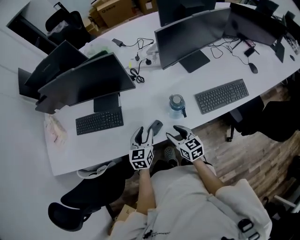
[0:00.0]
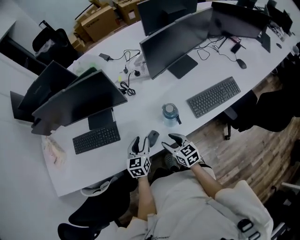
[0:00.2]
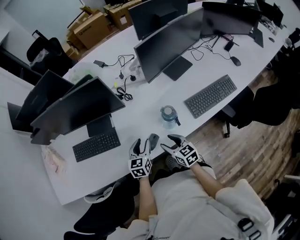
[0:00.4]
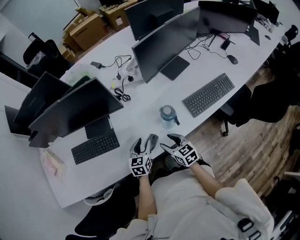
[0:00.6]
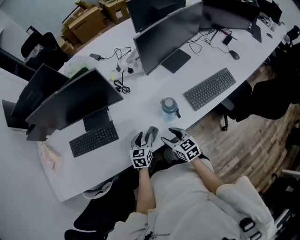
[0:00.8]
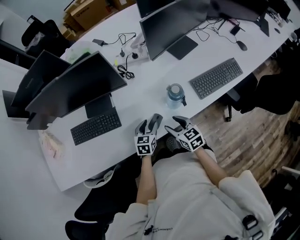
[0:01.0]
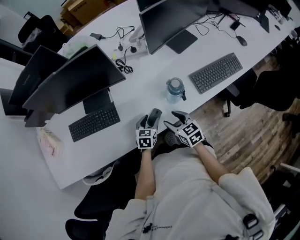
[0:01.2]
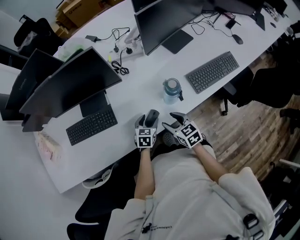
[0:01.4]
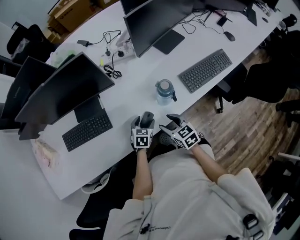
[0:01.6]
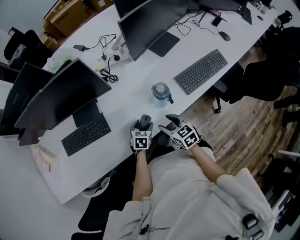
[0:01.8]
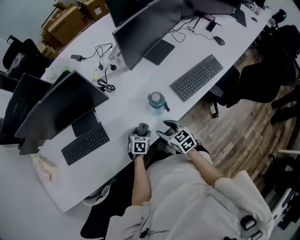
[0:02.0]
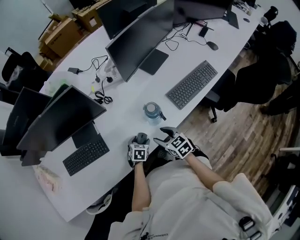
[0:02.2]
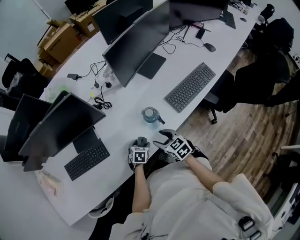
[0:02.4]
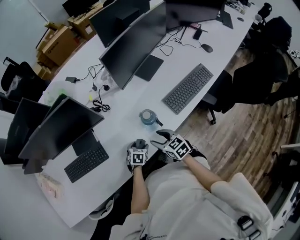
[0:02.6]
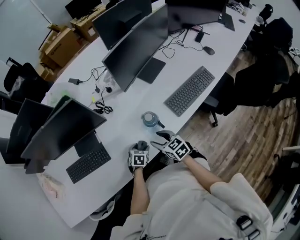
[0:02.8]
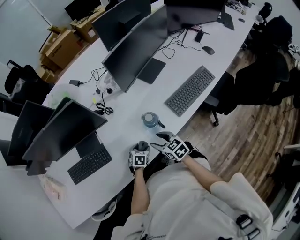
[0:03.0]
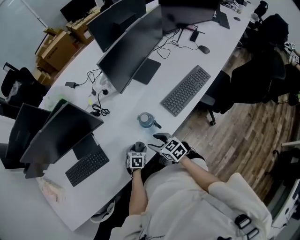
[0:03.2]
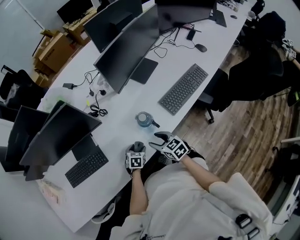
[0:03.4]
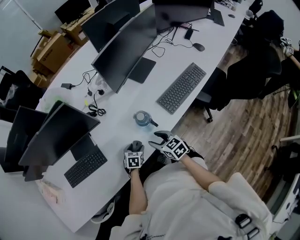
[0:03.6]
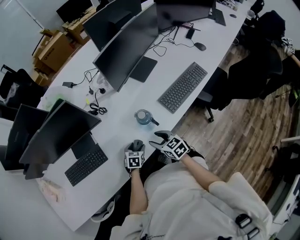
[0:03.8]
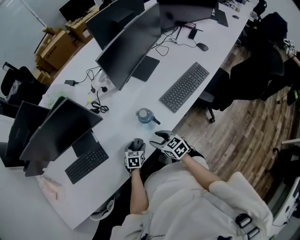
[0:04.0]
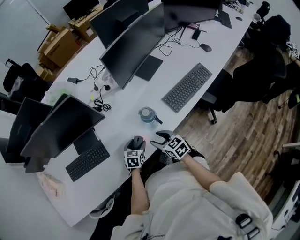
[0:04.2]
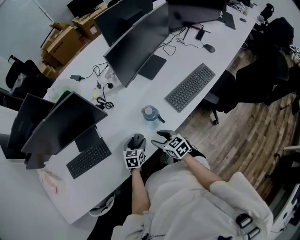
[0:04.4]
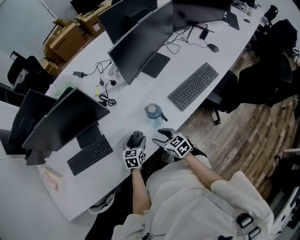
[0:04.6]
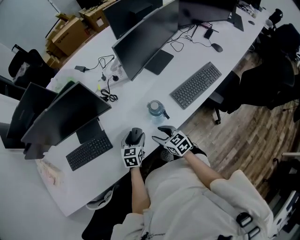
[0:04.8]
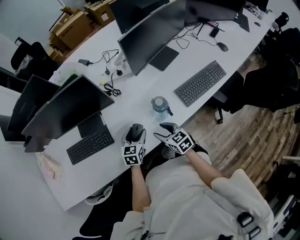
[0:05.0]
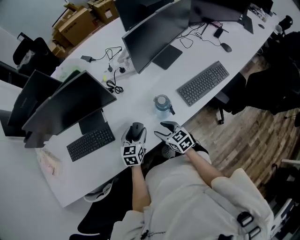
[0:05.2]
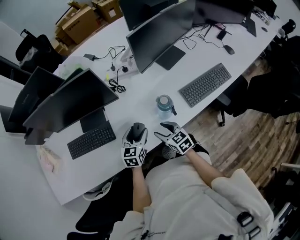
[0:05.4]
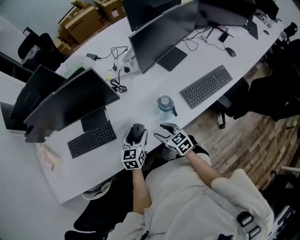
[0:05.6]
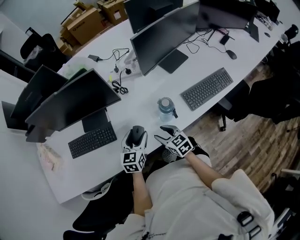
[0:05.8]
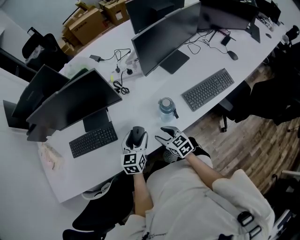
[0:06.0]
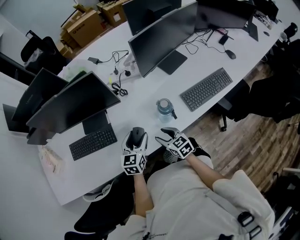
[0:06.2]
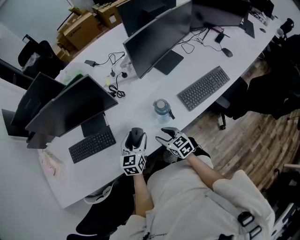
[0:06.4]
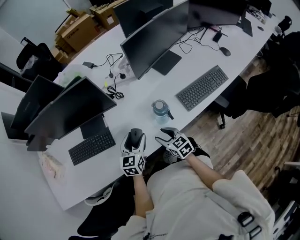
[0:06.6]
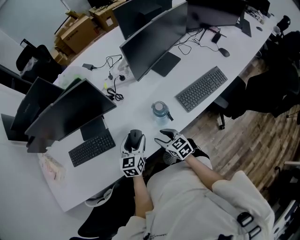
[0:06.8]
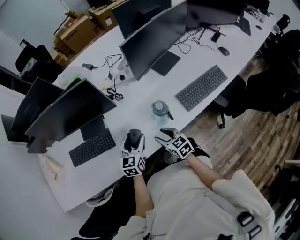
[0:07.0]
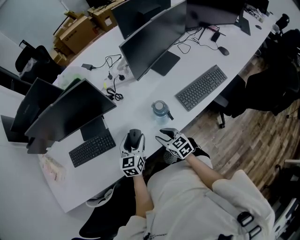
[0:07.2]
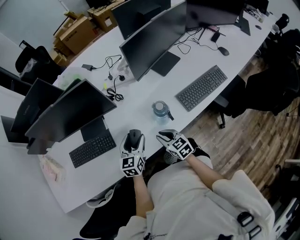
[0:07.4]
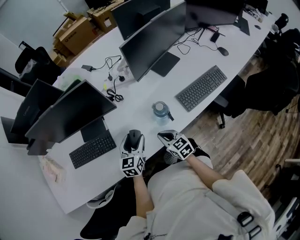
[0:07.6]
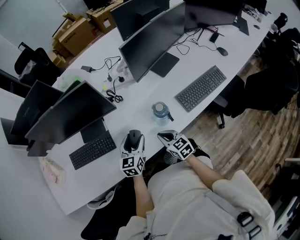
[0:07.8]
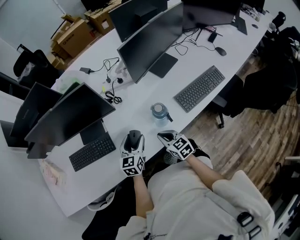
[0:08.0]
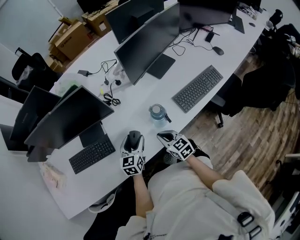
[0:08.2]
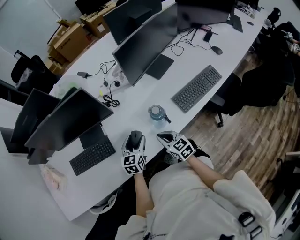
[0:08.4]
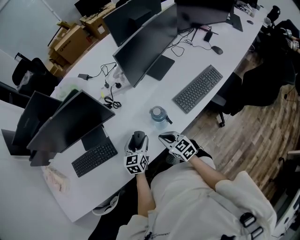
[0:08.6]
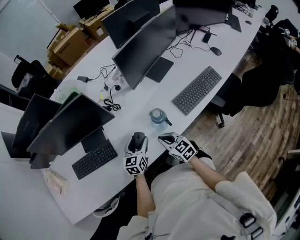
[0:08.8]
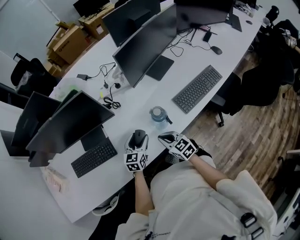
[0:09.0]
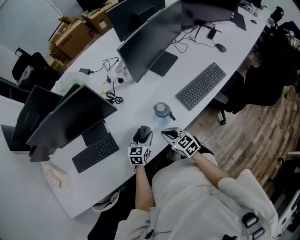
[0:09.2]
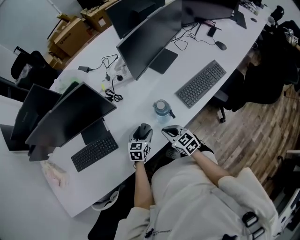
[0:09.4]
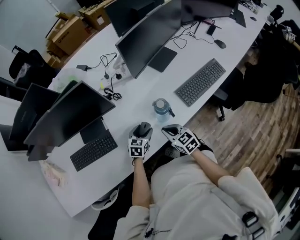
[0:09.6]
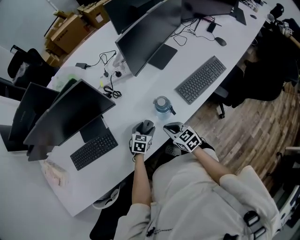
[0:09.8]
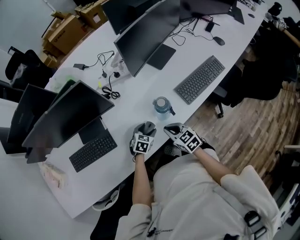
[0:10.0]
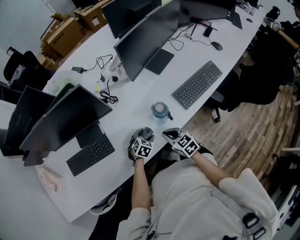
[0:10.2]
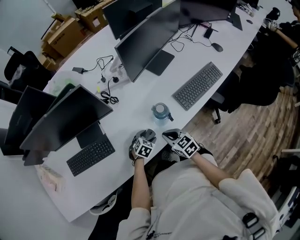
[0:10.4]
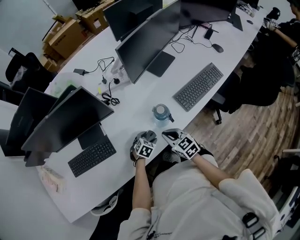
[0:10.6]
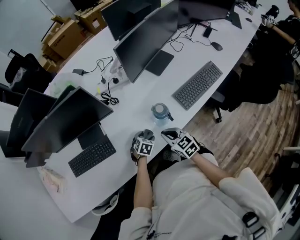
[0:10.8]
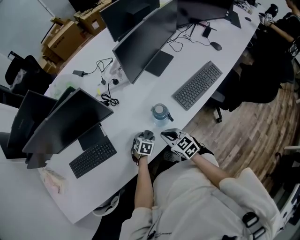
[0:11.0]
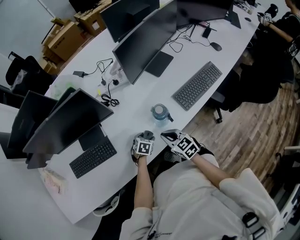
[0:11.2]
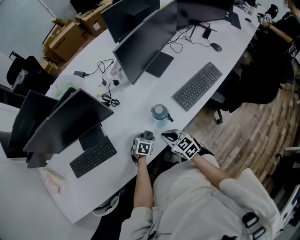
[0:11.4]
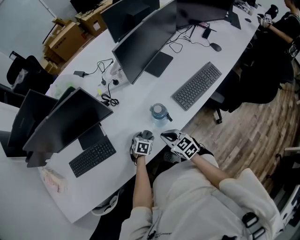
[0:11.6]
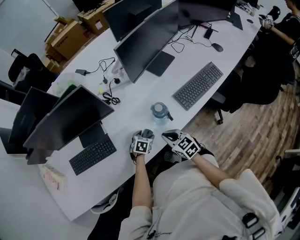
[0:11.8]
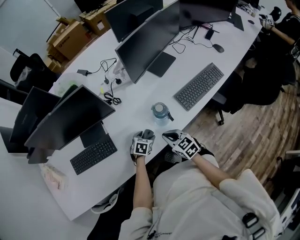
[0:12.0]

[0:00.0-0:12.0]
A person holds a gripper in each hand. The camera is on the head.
0:00.0 to 0:01.6: The left gripper is displaced downward by some 15 cm, changes its angle by about 30 degrees, and opens.
0:01.6 to 0:03.0: The grippers stay close to where they were, moving slightly.
0:03.0 to 0:04.4: The left gripper travels upward by about 10 cm.
0:04.4 to 0:06.0: The left gripper heads upward, covering some 15 cm, and swivels about 20 degrees.
0:06.0 to 0:07.6: The right gripper closes its fingers.
0:07.6 to 0:09.0: The left gripper travels downward by approximately 5 cm.
0:09.0 to 0:10.4: The left gripper is displaced downward by approximately 15 cm, and tips its fingers downward by roughly 30 degrees.
0:10.4 to 0:12.0: The grippers move only a little.

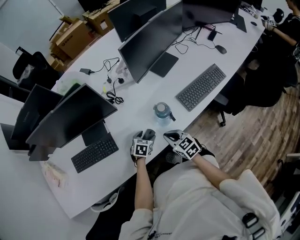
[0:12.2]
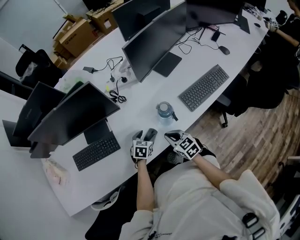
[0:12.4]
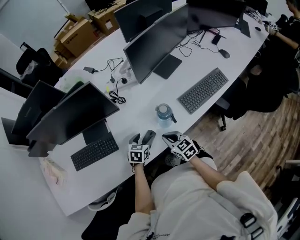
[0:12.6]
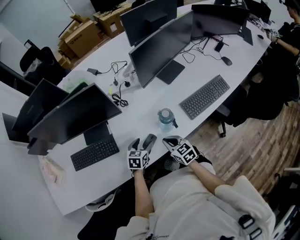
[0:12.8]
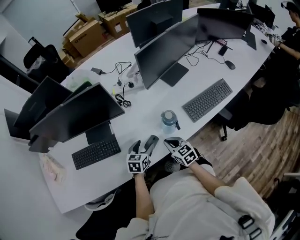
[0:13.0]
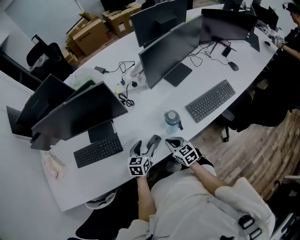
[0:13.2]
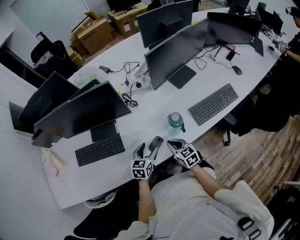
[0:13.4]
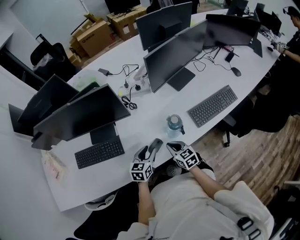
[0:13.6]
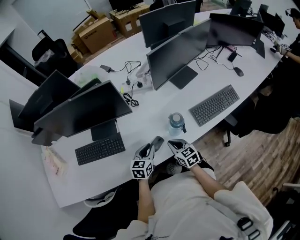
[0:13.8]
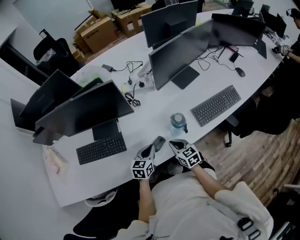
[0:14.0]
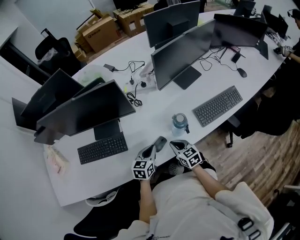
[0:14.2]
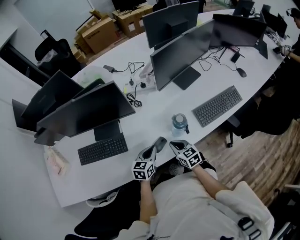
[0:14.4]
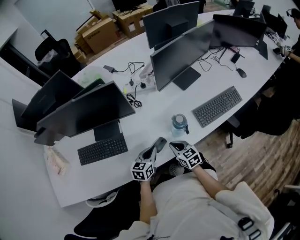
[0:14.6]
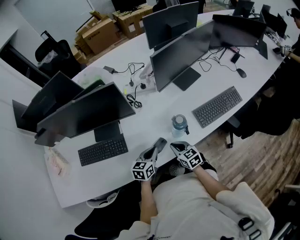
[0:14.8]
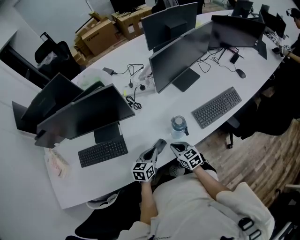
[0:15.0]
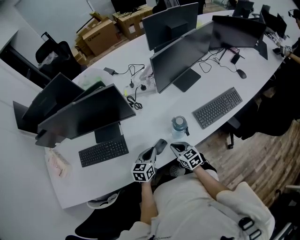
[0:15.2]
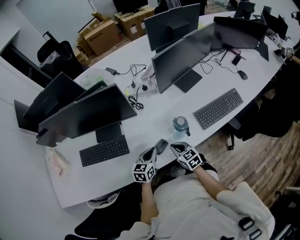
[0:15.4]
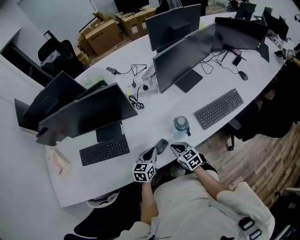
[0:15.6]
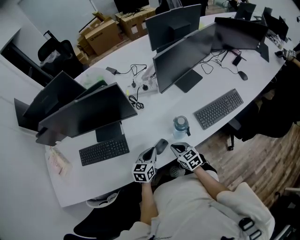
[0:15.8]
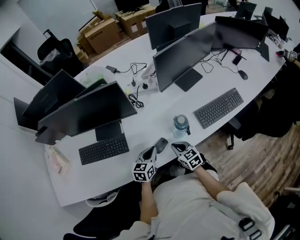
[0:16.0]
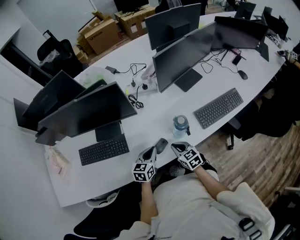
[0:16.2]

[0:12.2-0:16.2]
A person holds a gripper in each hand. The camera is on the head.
0:12.2 to 0:13.6: The left gripper moves upward, some 10 cm, rotates approximately 30 degrees, and closes.
0:13.6 to 0:14.8: The left gripper closes up.
0:14.8 to 0:16.2: The grippers make only small movements.

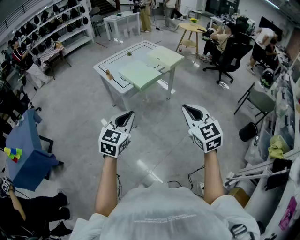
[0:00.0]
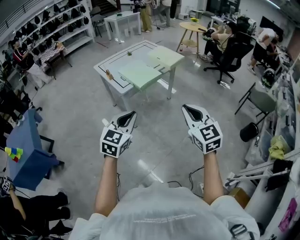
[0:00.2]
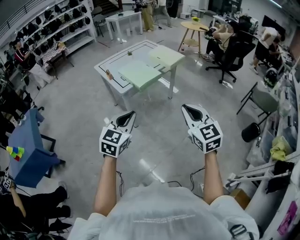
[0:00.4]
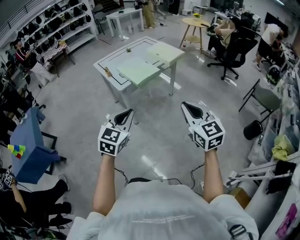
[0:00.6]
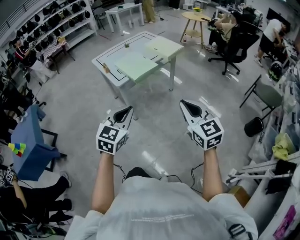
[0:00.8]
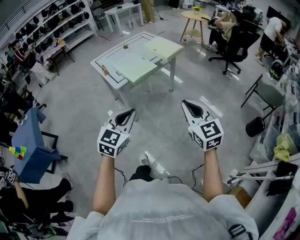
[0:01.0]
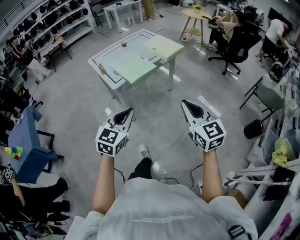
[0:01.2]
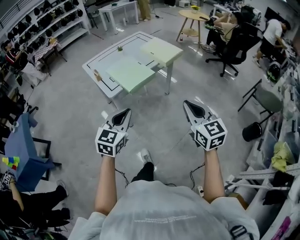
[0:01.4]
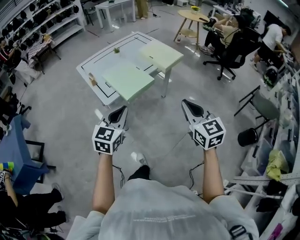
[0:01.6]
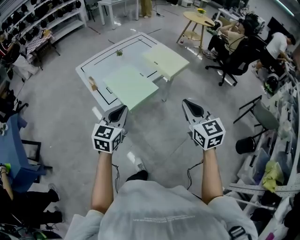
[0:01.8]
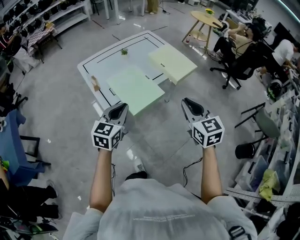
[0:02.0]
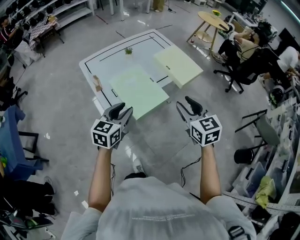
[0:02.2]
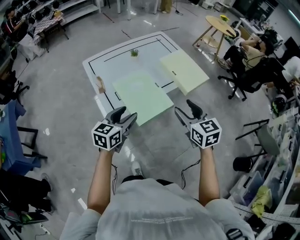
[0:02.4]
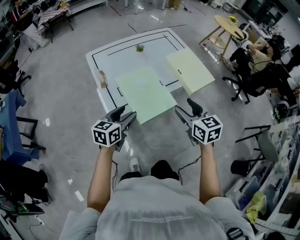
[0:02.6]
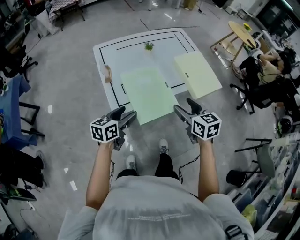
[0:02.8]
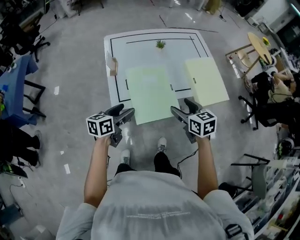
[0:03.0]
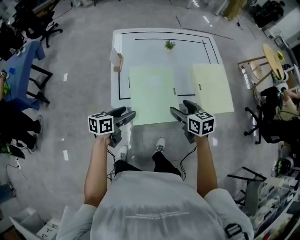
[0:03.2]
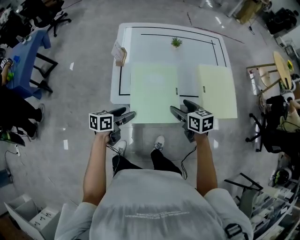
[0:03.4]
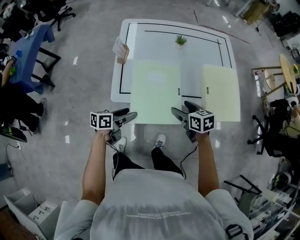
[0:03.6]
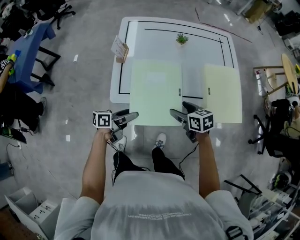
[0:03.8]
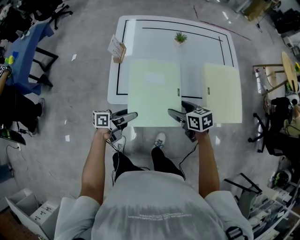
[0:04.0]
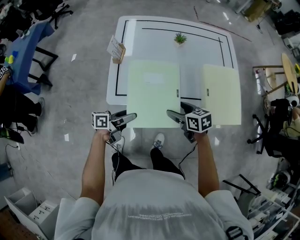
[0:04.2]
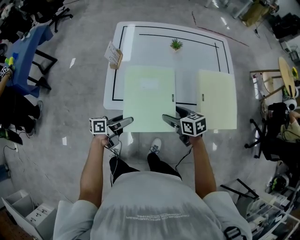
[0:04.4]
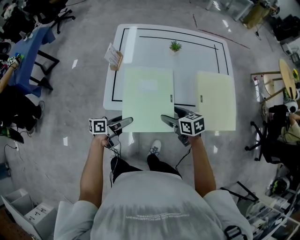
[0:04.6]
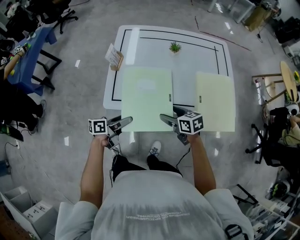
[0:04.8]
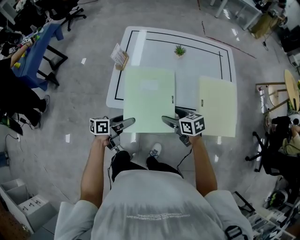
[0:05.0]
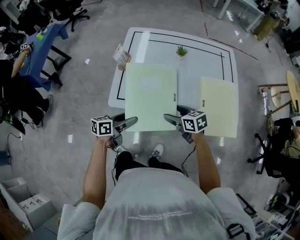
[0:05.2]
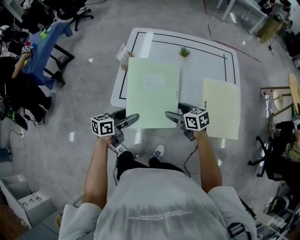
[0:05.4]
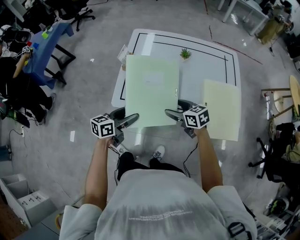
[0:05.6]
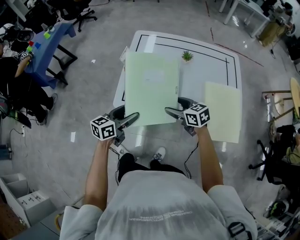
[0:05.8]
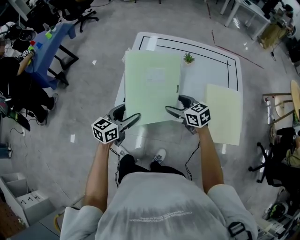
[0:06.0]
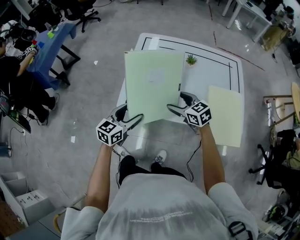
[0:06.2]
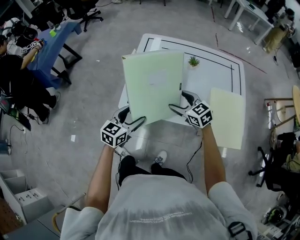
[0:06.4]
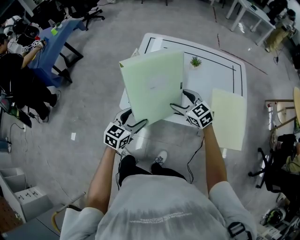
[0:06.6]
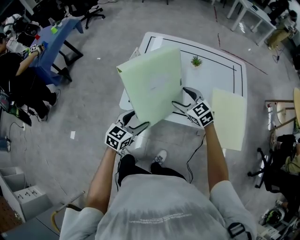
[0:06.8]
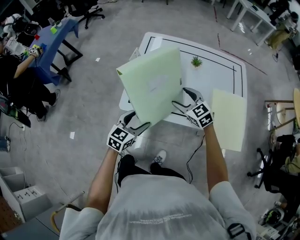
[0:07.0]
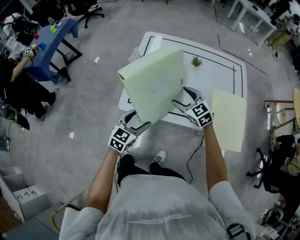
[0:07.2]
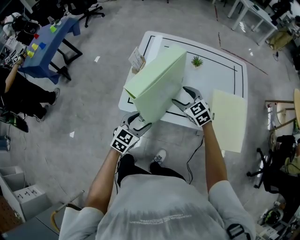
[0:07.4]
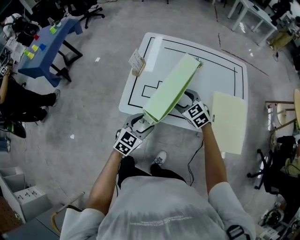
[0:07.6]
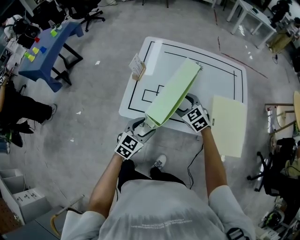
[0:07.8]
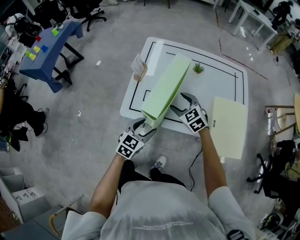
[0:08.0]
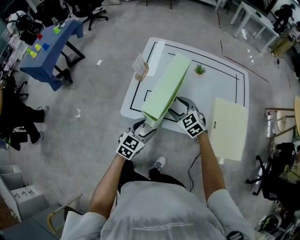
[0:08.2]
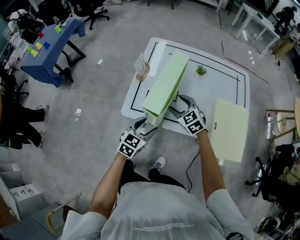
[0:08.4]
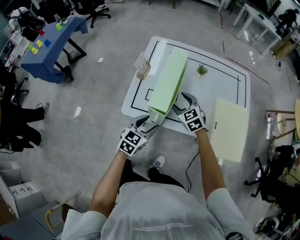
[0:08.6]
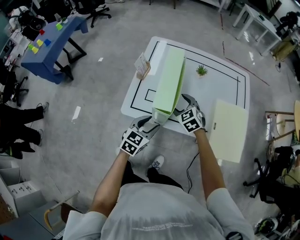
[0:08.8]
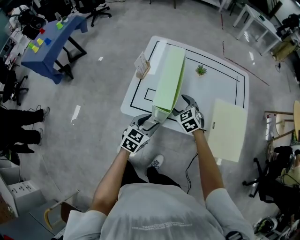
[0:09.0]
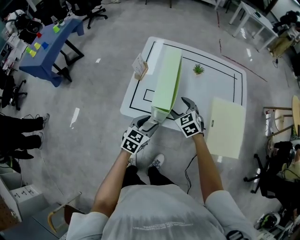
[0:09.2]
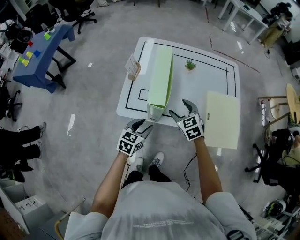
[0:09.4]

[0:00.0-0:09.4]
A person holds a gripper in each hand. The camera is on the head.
0:00.0 to 0:01.6: Both grippers travel together forward, roughly 25 cm.
0:01.6 to 0:03.2: The right gripper shifts by some 50 cm, rotates some 50 degrees, and opens up. The left gripper shifts by about 30 cm, rolls counterclockwise, seen from behind, by roughly 60 degrees, and opens up.
0:03.2 to 0:04.8: Both grippers move downward, roughly 10 cm. The right gripper turns by about 20 degrees; the left gripper turns by approximately 20 degrees.
0:04.8 to 0:06.2: The right gripper shifts roughly 10 cm forward and upward, and turns by roughly 30 degrees, while the left gripper shifts approximately 10 cm upward, and rotates around the line of its fingers by roughly 50 degrees, clockwise from behind.
0:06.2 to 0:07.8: The left gripper is displaced to the right by some 5 cm, and rotates approximately 20 degrees. Meanwhile the right gripper turns by roughly 20 degrees.
0:07.8 to 0:09.4: The right gripper shifts by roughly 5 cm.
